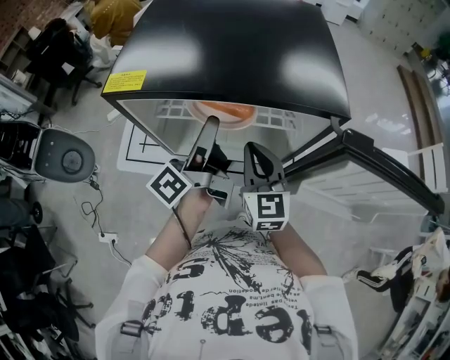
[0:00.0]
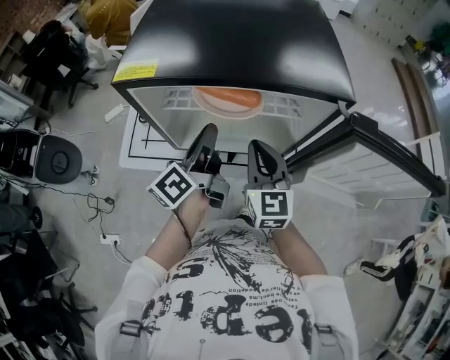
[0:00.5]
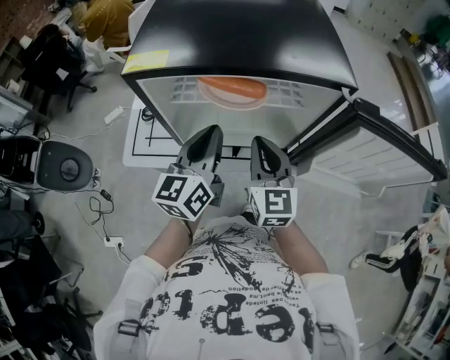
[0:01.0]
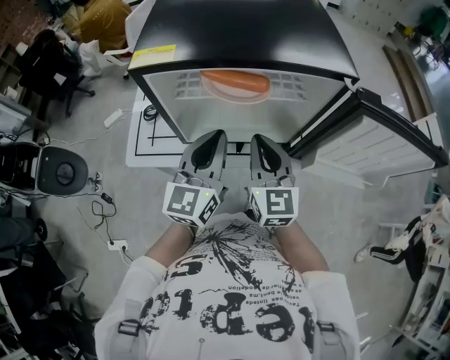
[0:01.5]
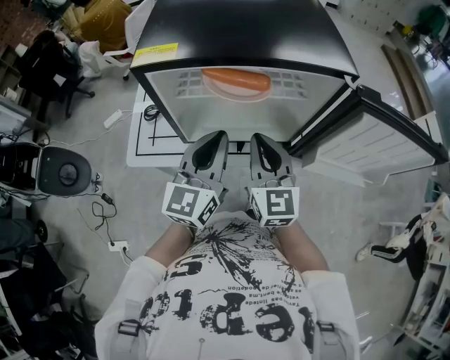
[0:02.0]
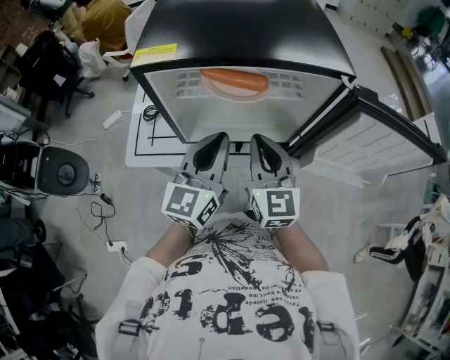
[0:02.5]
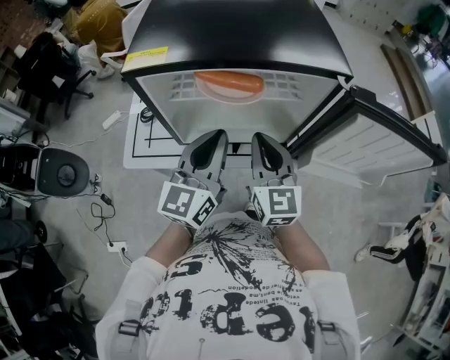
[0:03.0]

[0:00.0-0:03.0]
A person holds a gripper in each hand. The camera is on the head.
0:00.0 to 0:01.5: The grippers both shift backward by approximately 10 cm. The left gripper twists about 60 degrees clockwise, seen from behind, and closes its fingers.
0:01.5 to 0:03.0: The grippers make only small movements.

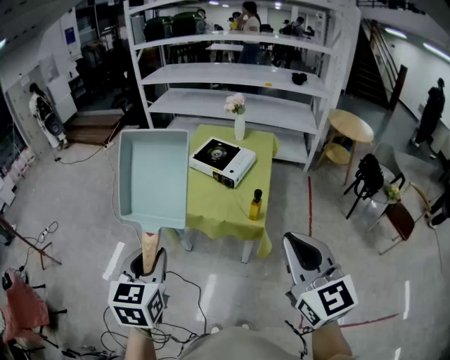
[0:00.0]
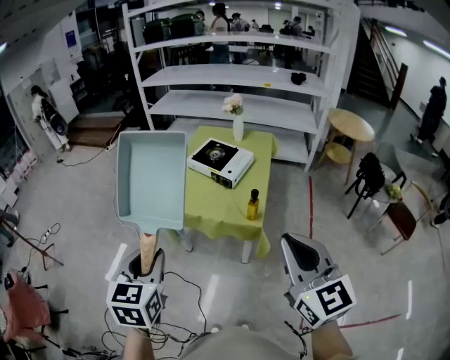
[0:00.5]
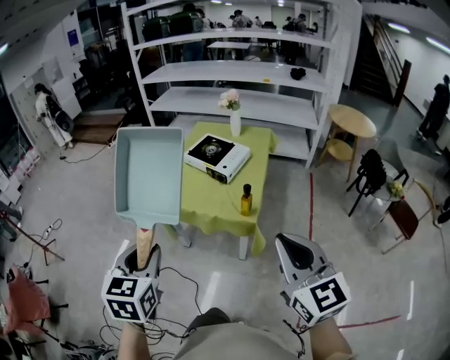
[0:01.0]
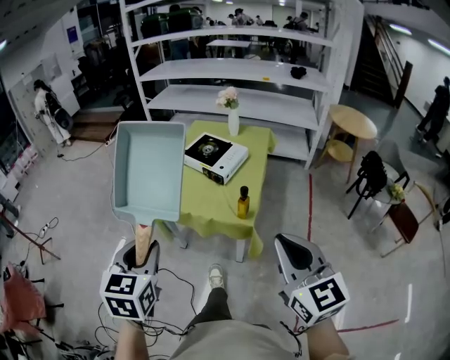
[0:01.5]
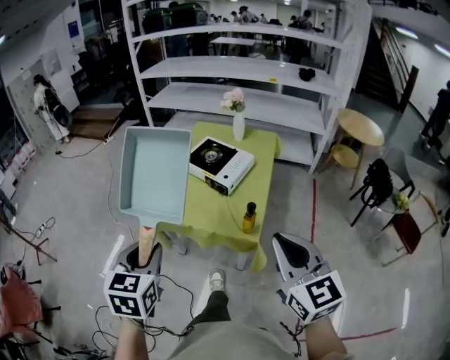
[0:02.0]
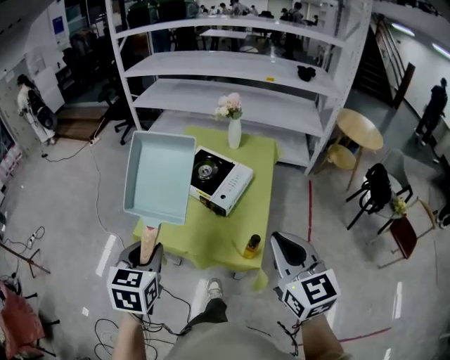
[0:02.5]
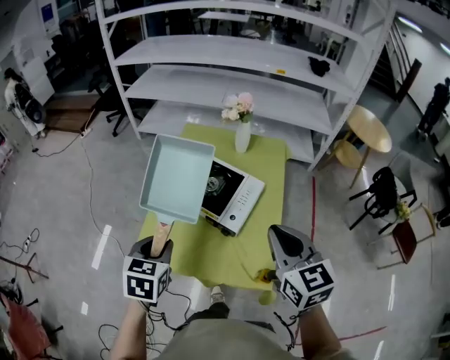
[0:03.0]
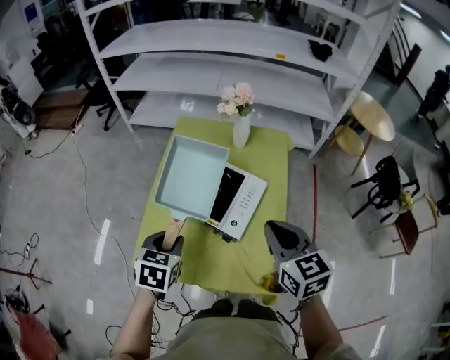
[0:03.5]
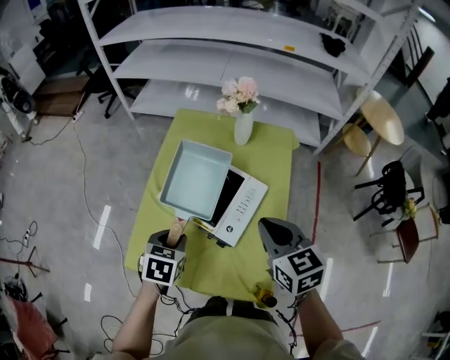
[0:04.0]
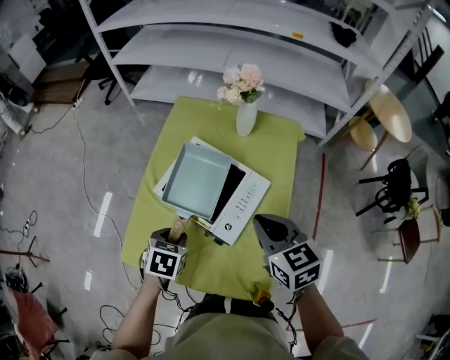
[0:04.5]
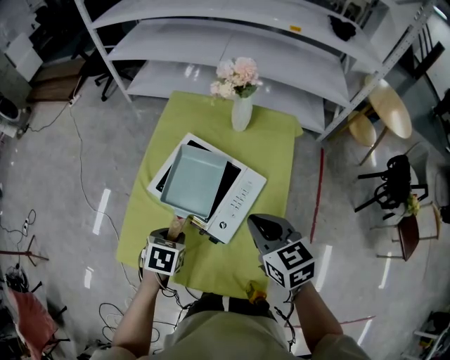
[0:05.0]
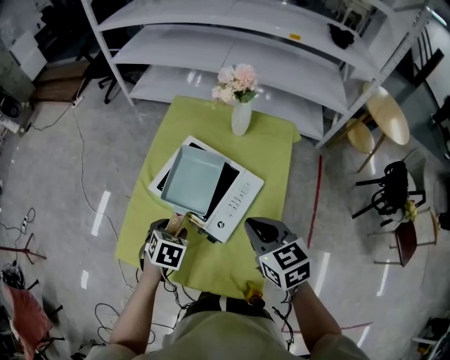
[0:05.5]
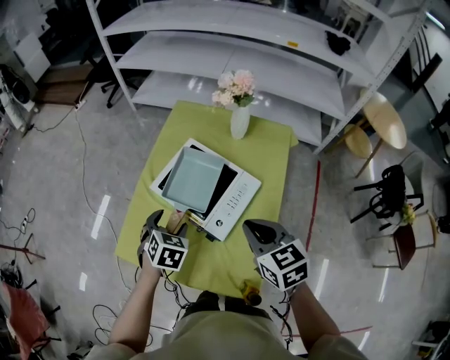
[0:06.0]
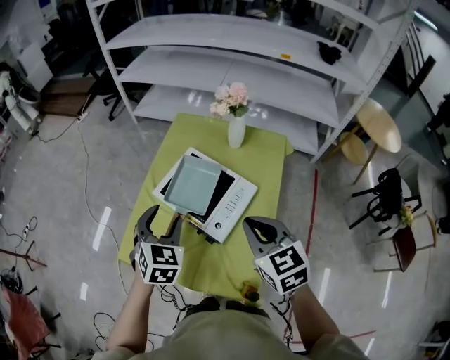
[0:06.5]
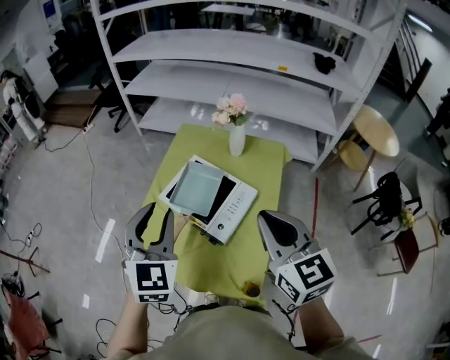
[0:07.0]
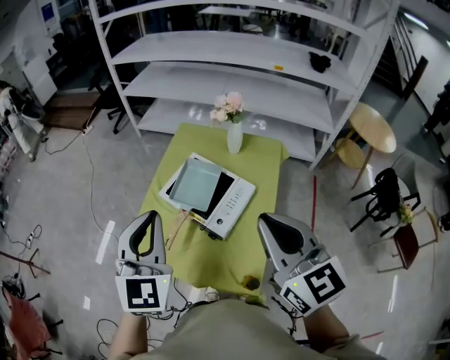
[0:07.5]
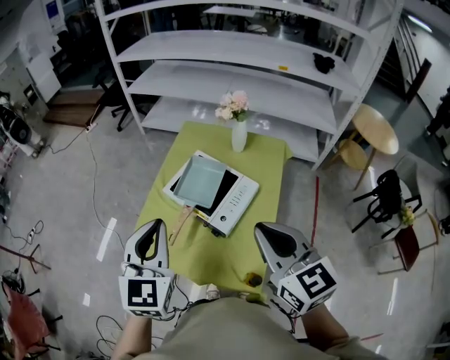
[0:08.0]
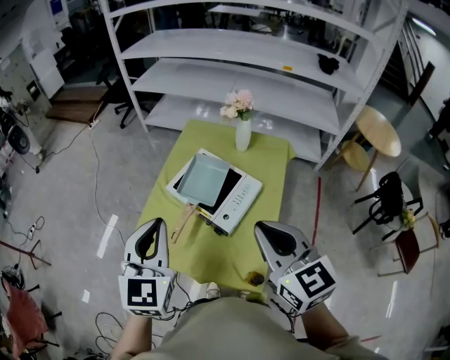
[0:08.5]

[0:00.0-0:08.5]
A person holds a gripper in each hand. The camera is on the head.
0:00.0 to 0:02.0: The left gripper is displaced forward, to the right and downward by roughly 15 cm. The right gripper heads forward, downward and to the right, covering approximately 15 cm.
0:02.0 to 0:04.0: The two grippers travel together, forward, about 40 cm. The right gripper turns by roughly 20 degrees; the left gripper travels downward by some 20 cm, and swivels about 30 degrees.
0:04.0 to 0:06.5: The left gripper travels upward by about 10 cm, turns by about 30 degrees, and opens its fingers.
0:06.5 to 0:08.5: Both grippers move upward and backward, some 15 cm. The left gripper turns by some 30 degrees, and closes its fingers.

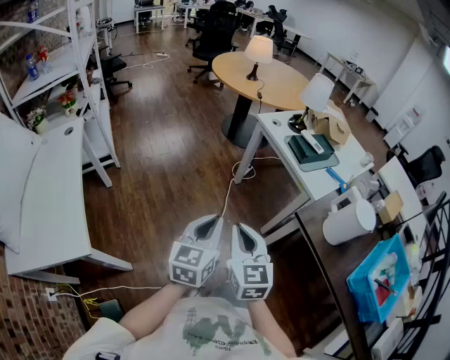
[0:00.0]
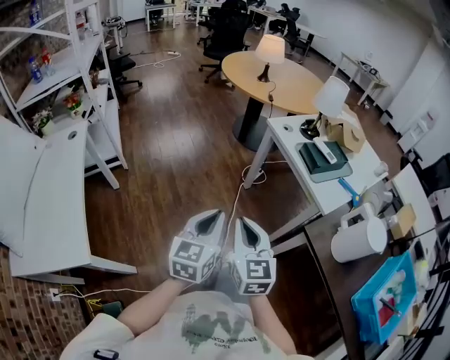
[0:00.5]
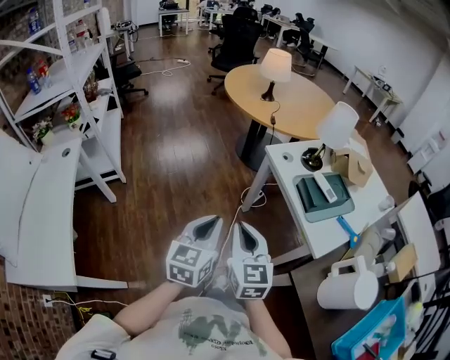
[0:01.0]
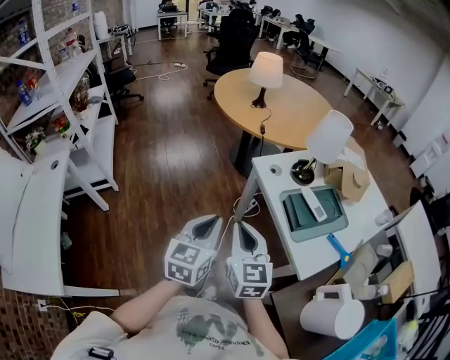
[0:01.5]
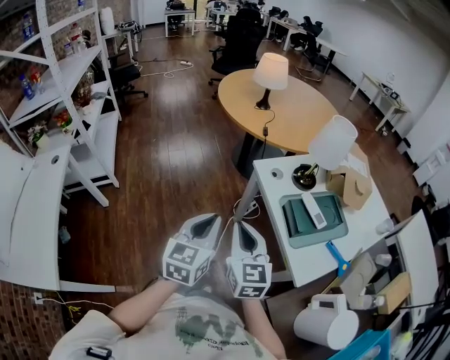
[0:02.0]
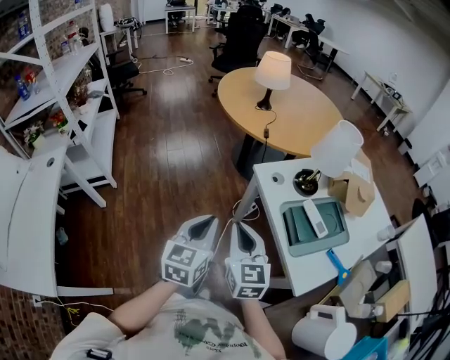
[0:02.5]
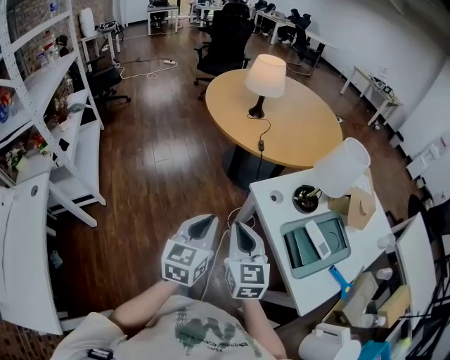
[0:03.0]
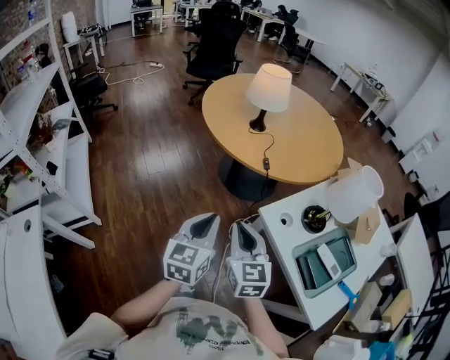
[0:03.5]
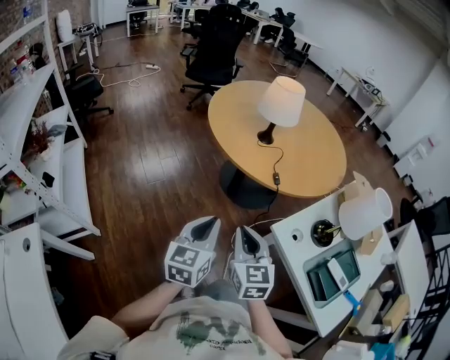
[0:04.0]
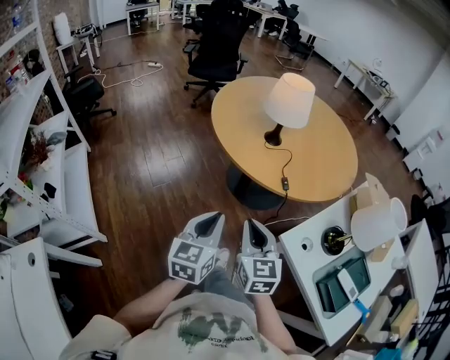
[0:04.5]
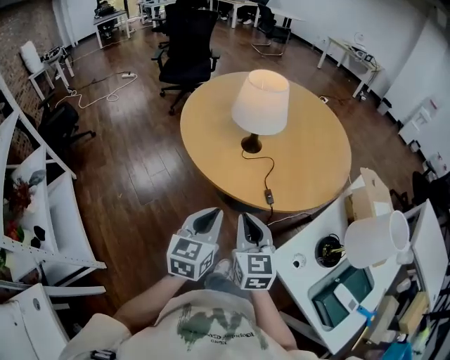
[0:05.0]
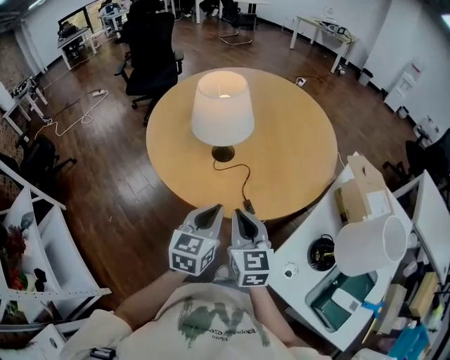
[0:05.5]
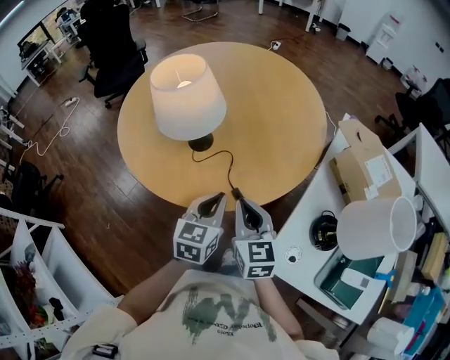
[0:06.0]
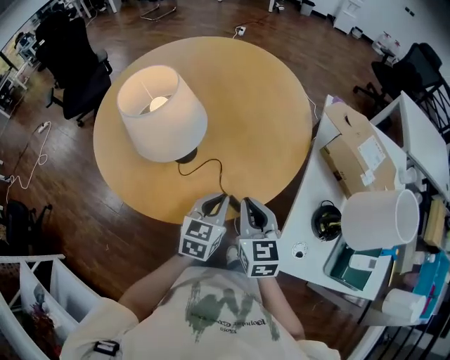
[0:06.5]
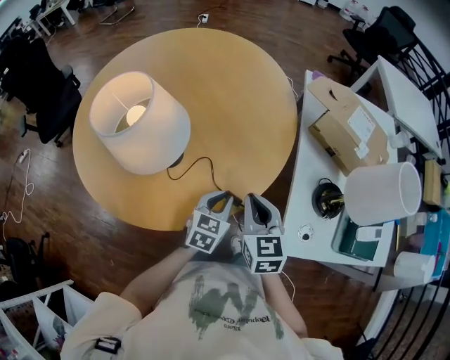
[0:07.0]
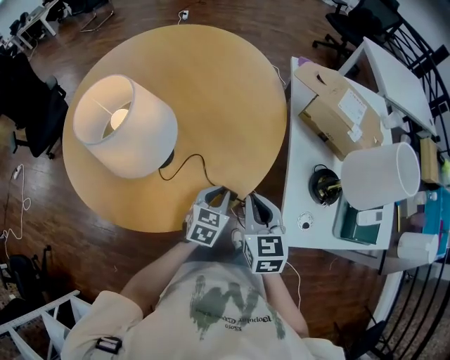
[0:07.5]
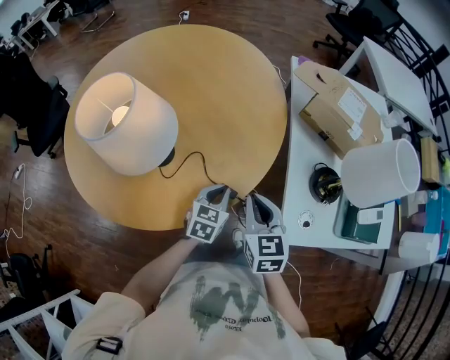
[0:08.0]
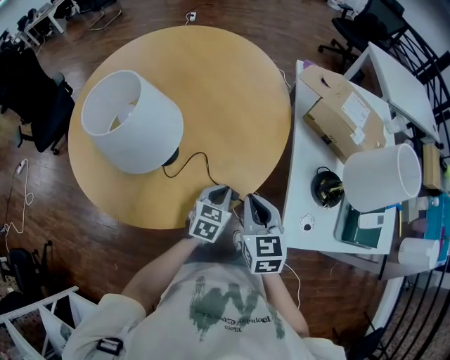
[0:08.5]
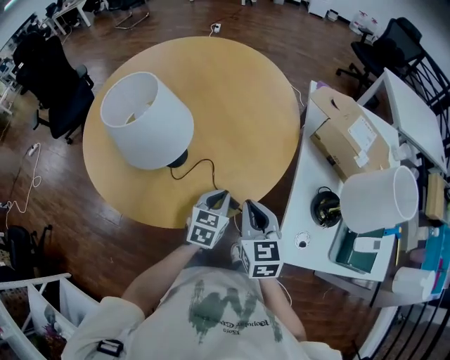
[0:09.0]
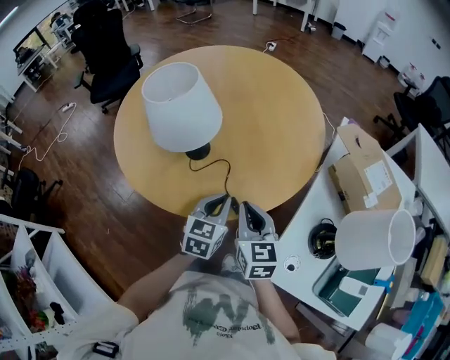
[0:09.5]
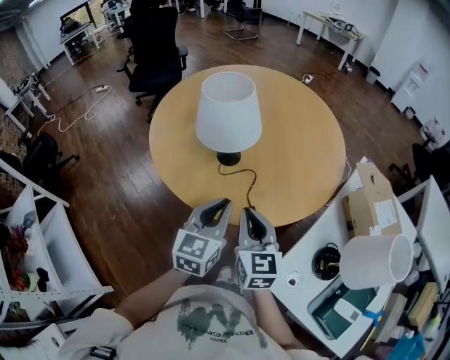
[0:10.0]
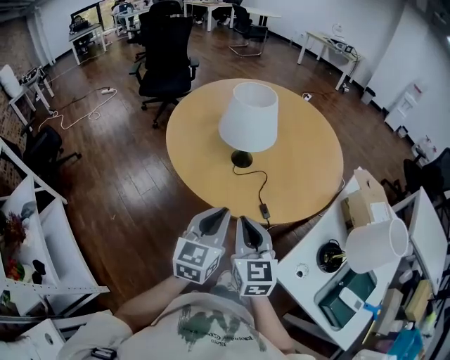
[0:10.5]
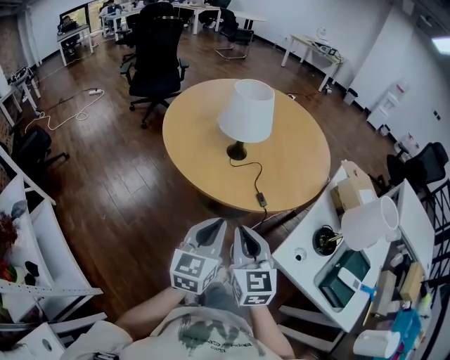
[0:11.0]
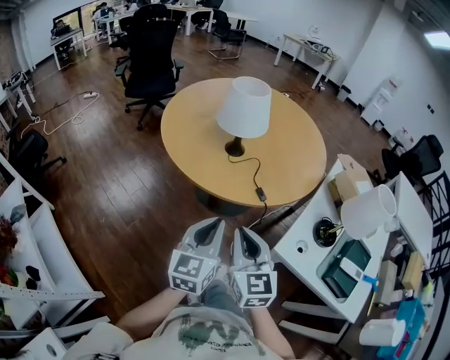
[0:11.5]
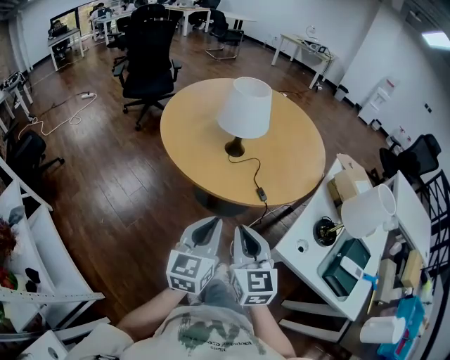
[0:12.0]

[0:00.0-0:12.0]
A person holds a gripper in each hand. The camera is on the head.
0:00.0 to 0:02.0: The grippers both shift forward by about 35 cm.
0:02.0 to 0:04.0: Both grippers travel together forward and to the left, roughly 35 cm.
0:04.0 to 0:06.0: The left gripper goes about 40 cm forward and to the right, and changes its angle by some 30 degrees; the right gripper moves forward, about 35 cm, and swivels about 30 degrees.
0:06.0 to 0:08.0: The left gripper moves downward, about 15 cm, and rotates roughly 40 degrees, while the right gripper ends up about 5 cm from where it was, and rotates about 30 degrees.
0:08.0 to 0:10.0: The right gripper shifts by some 10 cm, and changes its angle by roughly 40 degrees. The left gripper is displaced upward by some 20 cm, and rotates roughly 50 degrees.
0:10.0 to 0:12.0: The grippers both shift backward and to the left by about 20 cm.

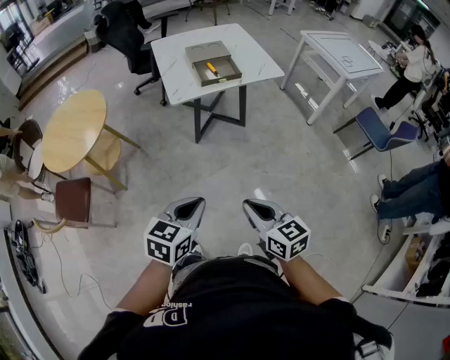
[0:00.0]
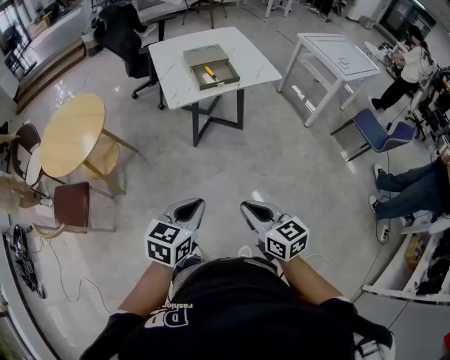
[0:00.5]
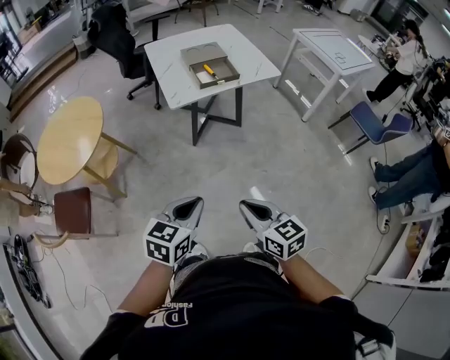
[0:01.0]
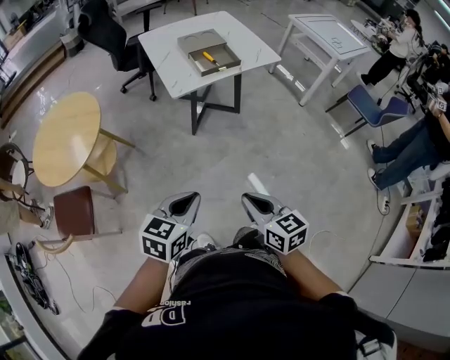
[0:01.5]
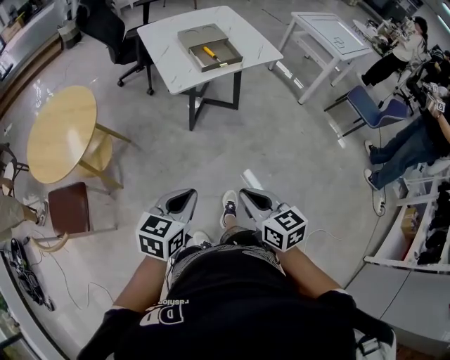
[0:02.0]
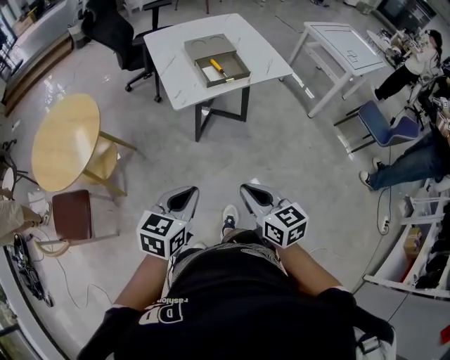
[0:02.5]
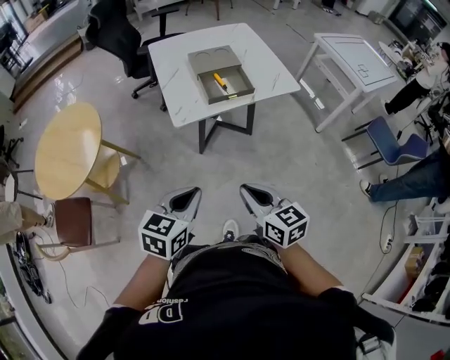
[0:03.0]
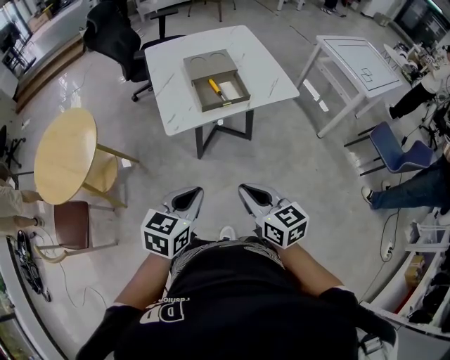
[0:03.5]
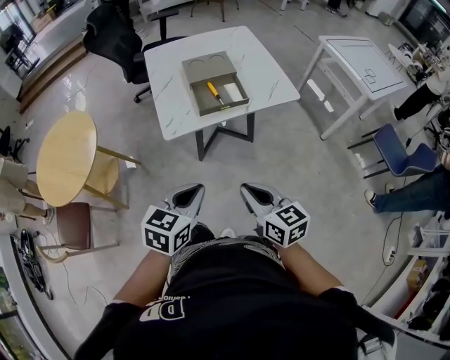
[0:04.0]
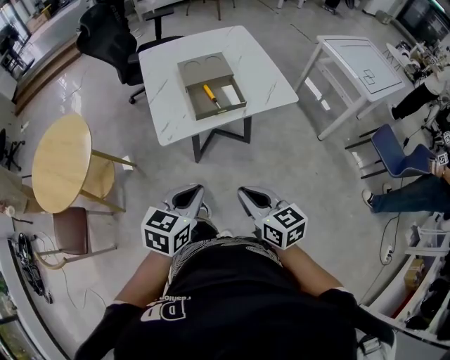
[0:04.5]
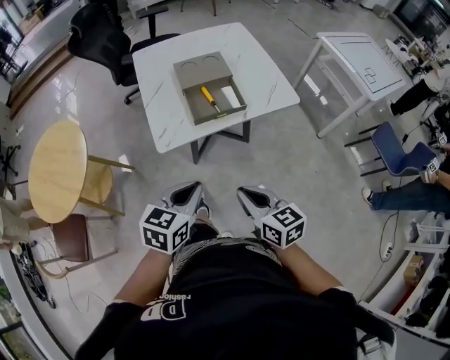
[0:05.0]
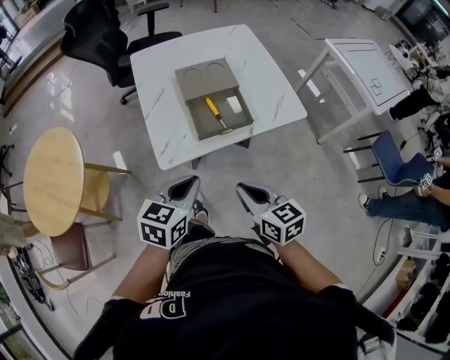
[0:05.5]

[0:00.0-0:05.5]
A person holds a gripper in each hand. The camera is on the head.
0:00.0 to 0:02.0: Both grippers travel together to the left, about 10 cm.
0:02.0 to 0:03.5: The right gripper heads forward, covering approximately 25 cm. The left gripper shifts some 25 cm forward and to the right.
0:03.5 to 0:05.5: Both grippers travel together forward, approximately 20 cm.
